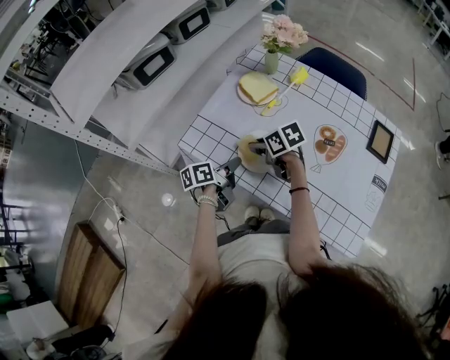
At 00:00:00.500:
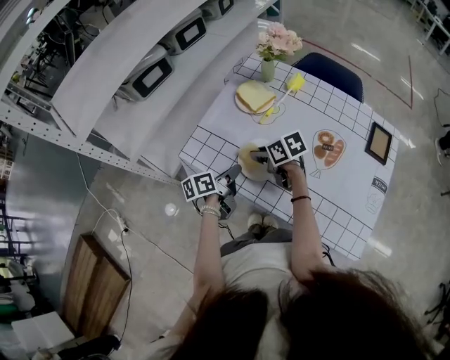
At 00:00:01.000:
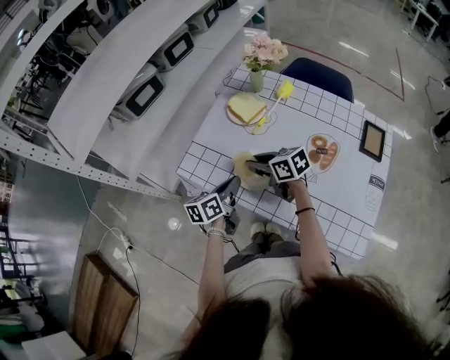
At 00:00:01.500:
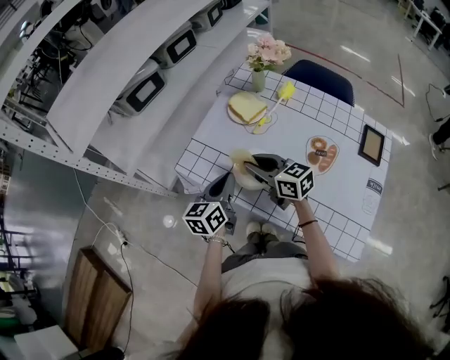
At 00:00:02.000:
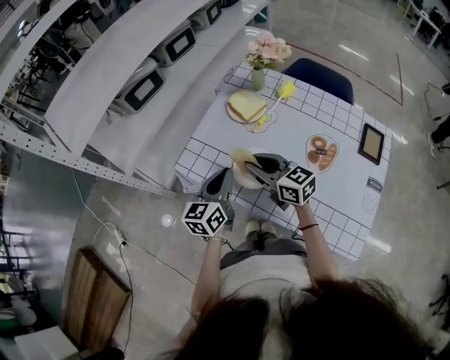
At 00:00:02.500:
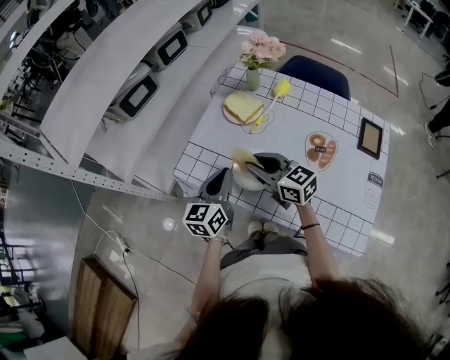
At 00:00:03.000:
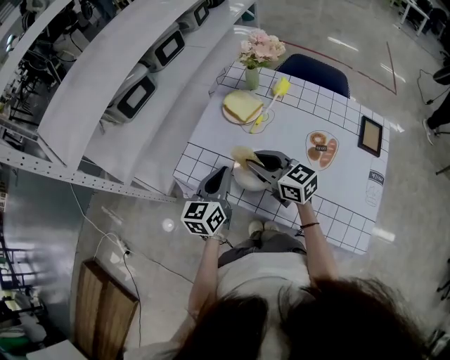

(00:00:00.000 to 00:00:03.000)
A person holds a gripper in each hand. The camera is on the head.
00:00:00.000 - 00:00:01.500: Both grippers travel together upward, some 10 cm. The left gripper swivels about 40 degrees. The right gripper rotates roughly 40 degrees.
00:00:01.500 - 00:00:03.000: The grippers stay close to where they were, moving slightly.
